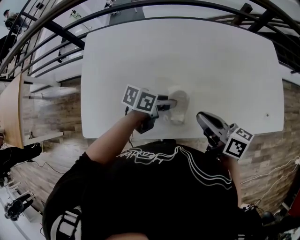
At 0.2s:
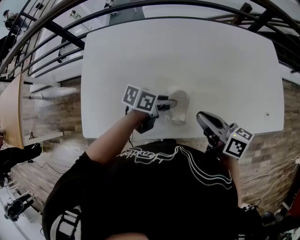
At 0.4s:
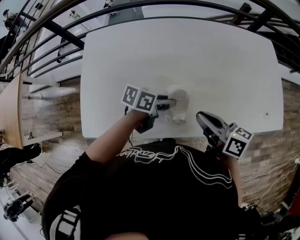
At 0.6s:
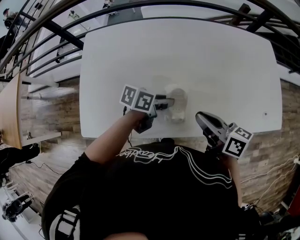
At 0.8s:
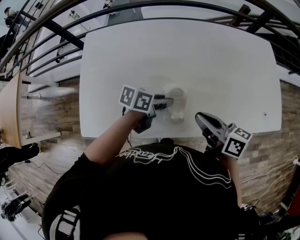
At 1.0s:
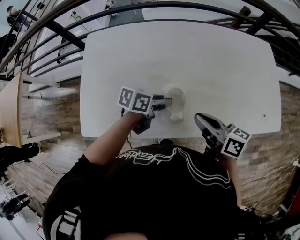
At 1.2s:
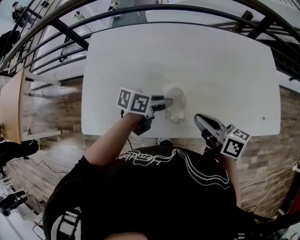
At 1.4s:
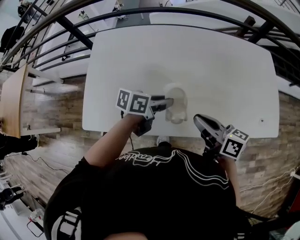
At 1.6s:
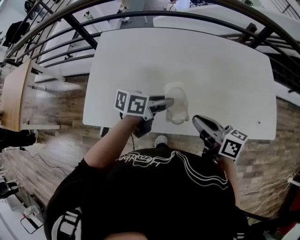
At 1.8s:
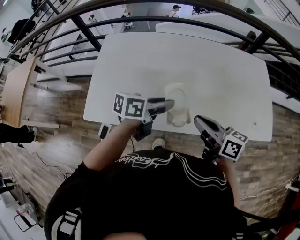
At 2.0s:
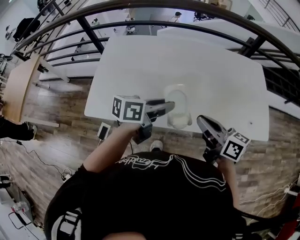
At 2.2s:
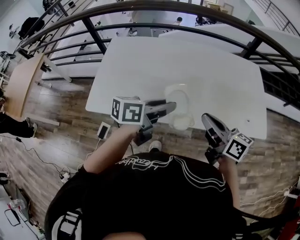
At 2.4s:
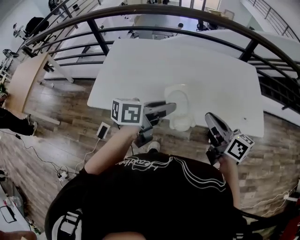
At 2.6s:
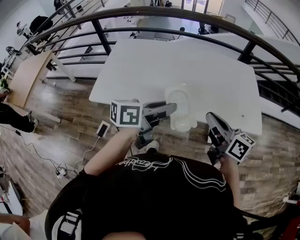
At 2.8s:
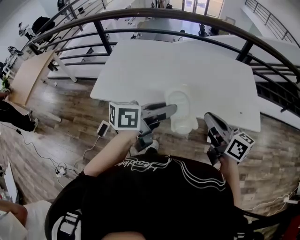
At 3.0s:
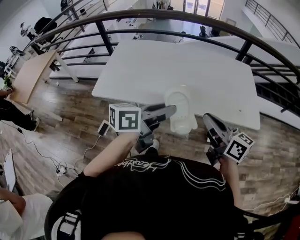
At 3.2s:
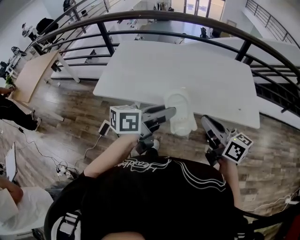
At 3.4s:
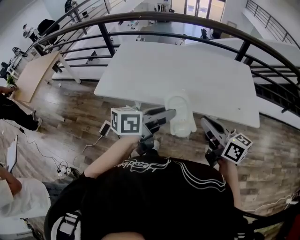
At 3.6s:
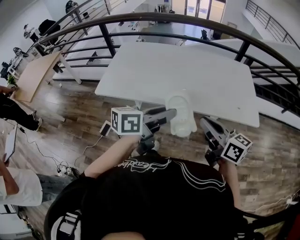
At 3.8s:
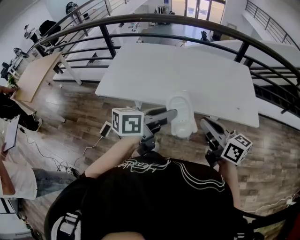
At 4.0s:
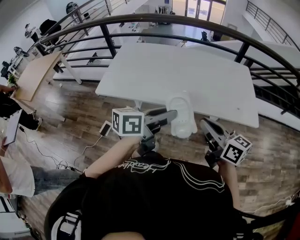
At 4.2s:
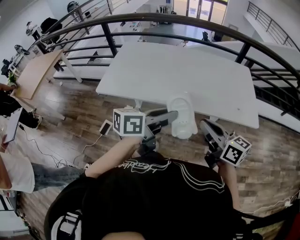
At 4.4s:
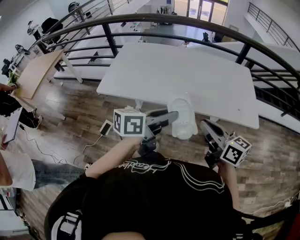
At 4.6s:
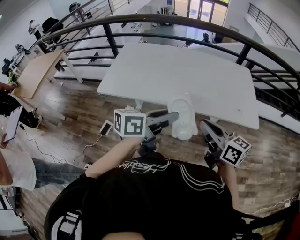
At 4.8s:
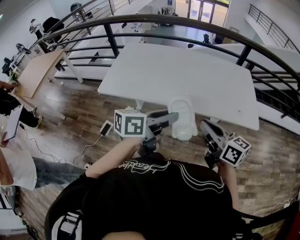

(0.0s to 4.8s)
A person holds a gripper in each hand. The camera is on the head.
0.0s - 1.6s: The left gripper heads upward, covering about 10 cm.
1.6s - 3.2s: The right gripper is displaced backward, to the right and upward by approximately 35 cm. Meanwhile the left gripper heads backward, upward and to the right, covering some 40 cm, and rotates about 20 degrees.
3.2s - 4.8s: The grippers make only small movements.

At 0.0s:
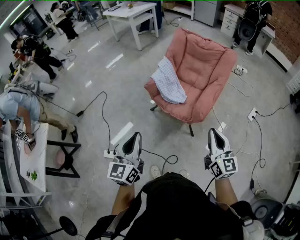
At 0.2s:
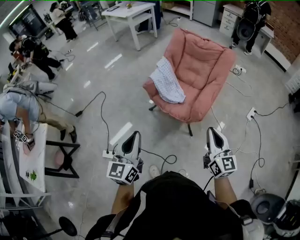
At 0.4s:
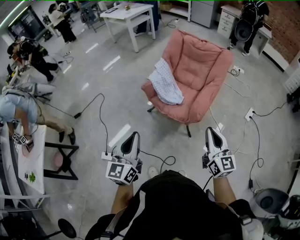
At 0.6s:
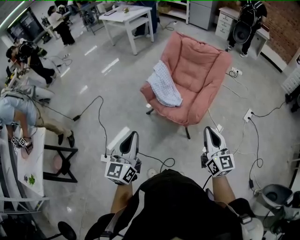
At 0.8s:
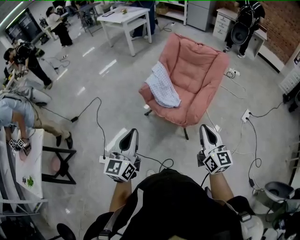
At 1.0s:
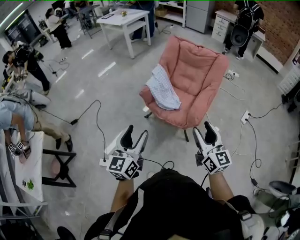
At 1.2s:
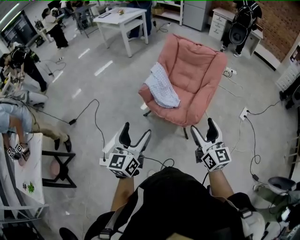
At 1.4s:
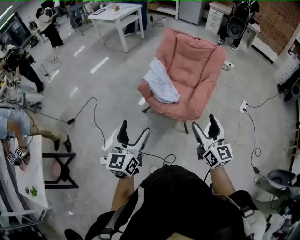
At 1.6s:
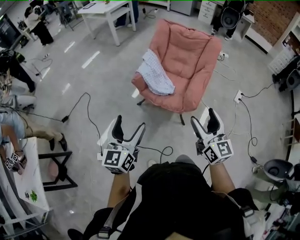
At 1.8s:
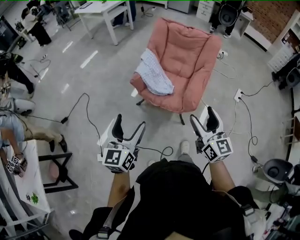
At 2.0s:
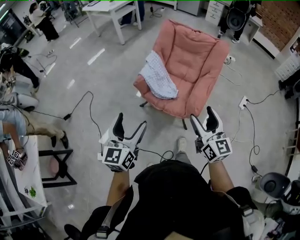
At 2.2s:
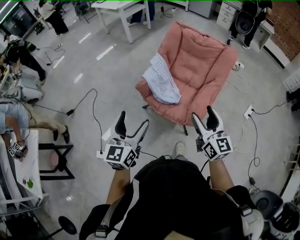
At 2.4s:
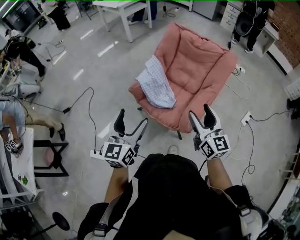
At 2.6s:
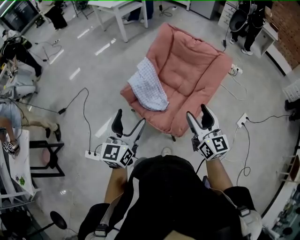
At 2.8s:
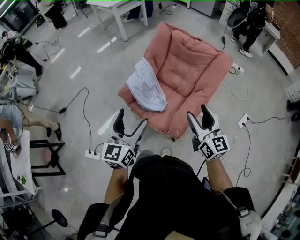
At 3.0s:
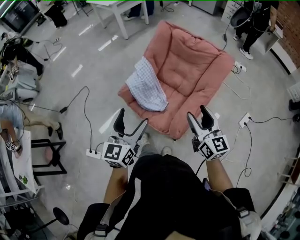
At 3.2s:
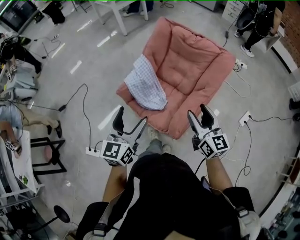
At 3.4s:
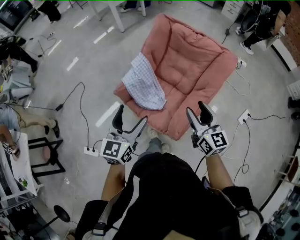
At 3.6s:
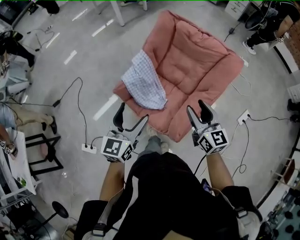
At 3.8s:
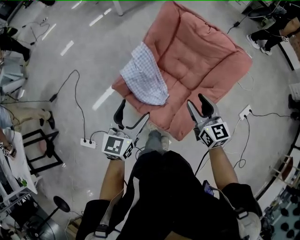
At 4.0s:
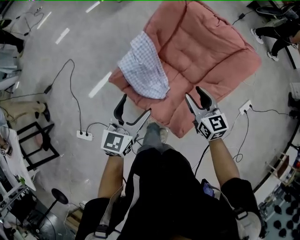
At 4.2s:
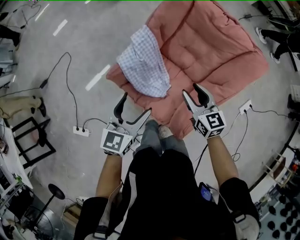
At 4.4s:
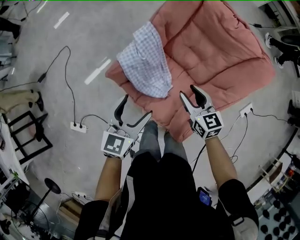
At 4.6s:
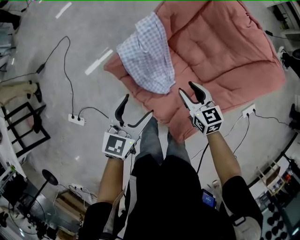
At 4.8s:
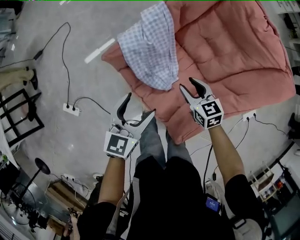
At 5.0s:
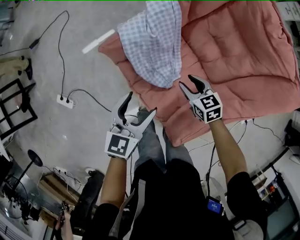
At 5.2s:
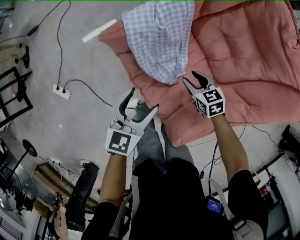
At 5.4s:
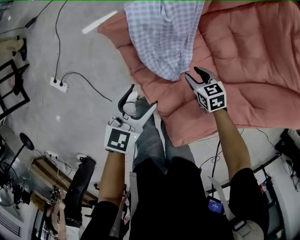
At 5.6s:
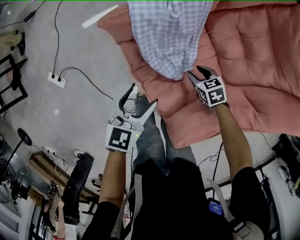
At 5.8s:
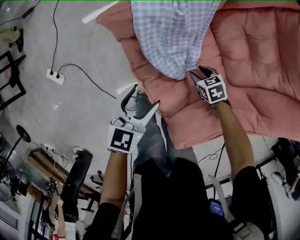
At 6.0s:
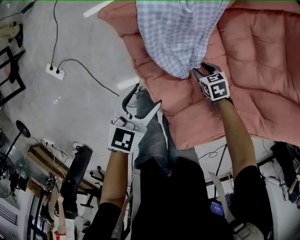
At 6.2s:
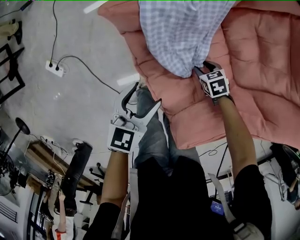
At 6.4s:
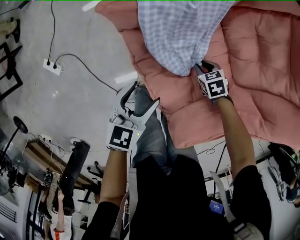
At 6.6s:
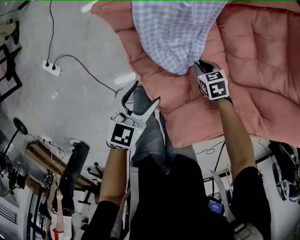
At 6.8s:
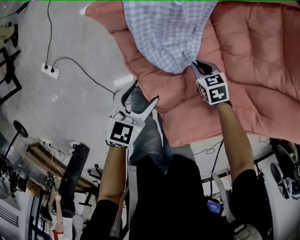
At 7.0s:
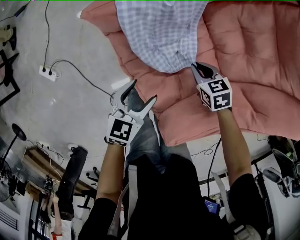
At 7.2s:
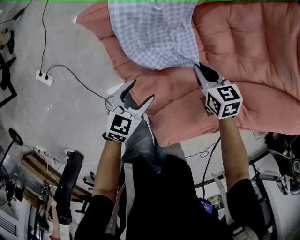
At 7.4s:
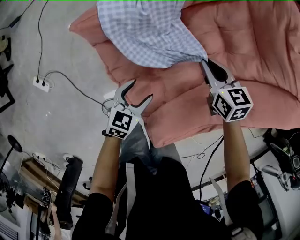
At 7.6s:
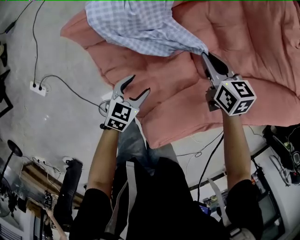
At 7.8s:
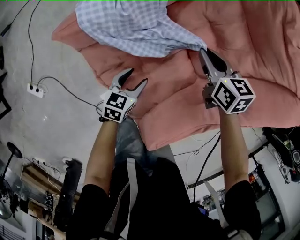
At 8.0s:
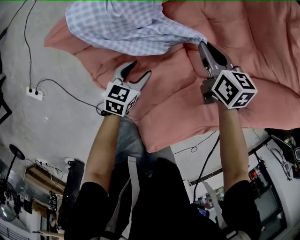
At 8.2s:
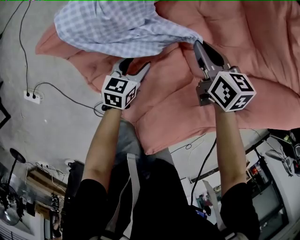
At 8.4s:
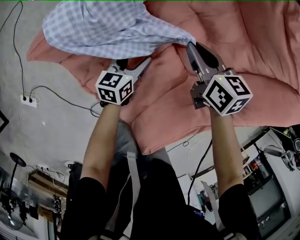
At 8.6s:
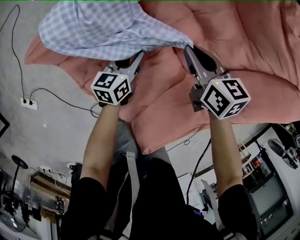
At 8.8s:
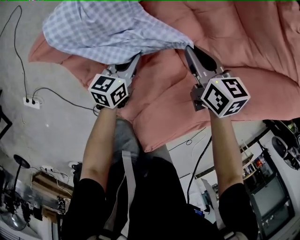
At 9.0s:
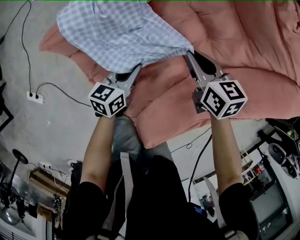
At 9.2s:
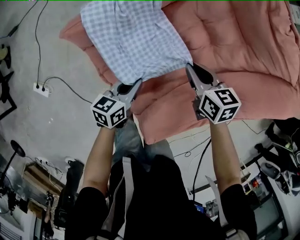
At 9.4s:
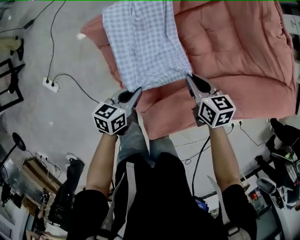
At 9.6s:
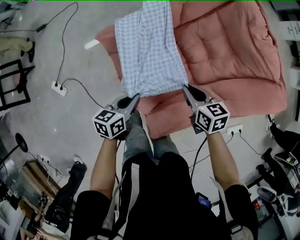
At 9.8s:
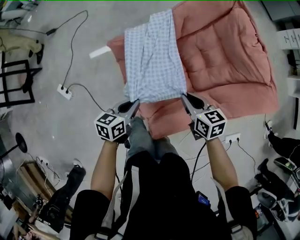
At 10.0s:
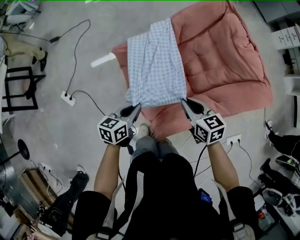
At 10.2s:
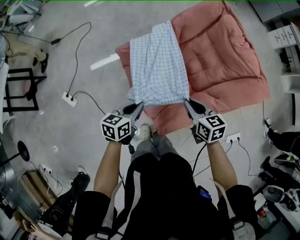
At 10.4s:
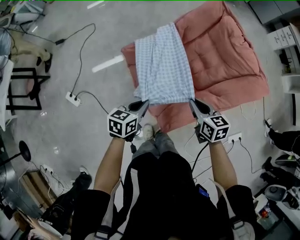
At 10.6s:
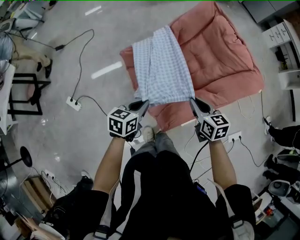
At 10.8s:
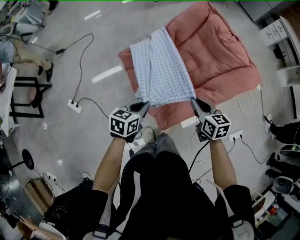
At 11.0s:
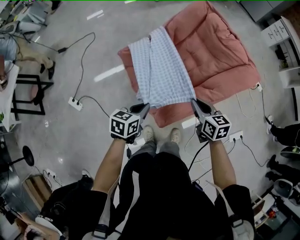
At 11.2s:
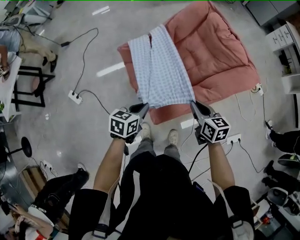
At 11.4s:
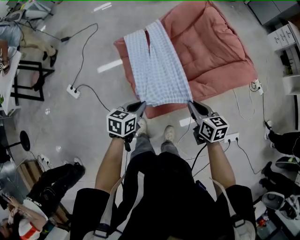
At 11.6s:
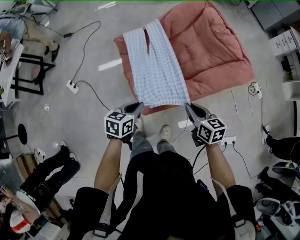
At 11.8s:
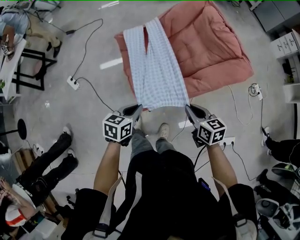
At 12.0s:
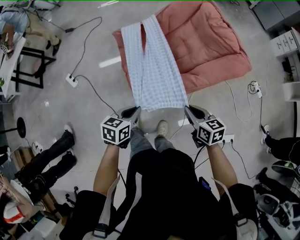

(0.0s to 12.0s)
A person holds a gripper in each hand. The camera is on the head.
0.0s - 1.6s: The right gripper heads to the left, covering roughly 10 cm, and opens, while the left gripper is displaced forward and to the left by some 10 cm, and opens.
1.6s - 3.0s: The grippers both shift forward and to the right by approximately 30 cm.
3.0s - 4.4s: Both grippers move downward and forward, some 30 cm. The right gripper turns by about 30 degrees.
4.4s - 6.0s: The left gripper travels downward by approximately 25 cm, and changes its angle by some 20 degrees; the right gripper goes about 40 cm downward, and points its fingers approximately 40 degrees further downward.
6.0s - 7.6s: The left gripper moves about 15 cm. Meanwhile the right gripper goes approximately 20 cm upward, changes its angle by roughly 30 degrees, and closes up.
7.6s - 9.0s: The left gripper goes about 10 cm forward, swivels roughly 30 degrees, and closes.
9.0s - 10.4s: Both grippers move upward and backward, some 30 cm.
10.4s - 12.0s: The right gripper goes some 25 cm to the right and backward. Meanwhile the left gripper heads backward and to the right, covering about 25 cm.

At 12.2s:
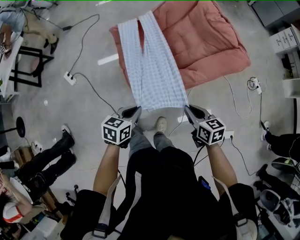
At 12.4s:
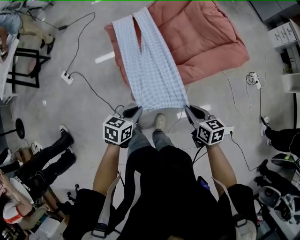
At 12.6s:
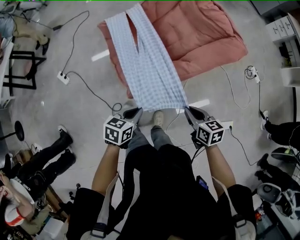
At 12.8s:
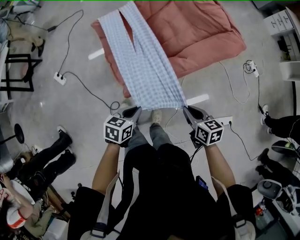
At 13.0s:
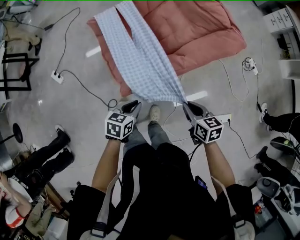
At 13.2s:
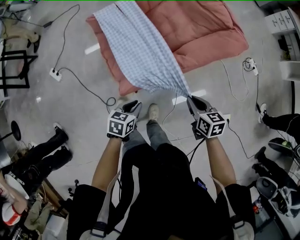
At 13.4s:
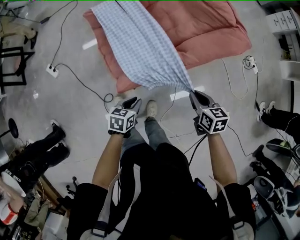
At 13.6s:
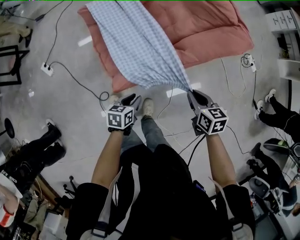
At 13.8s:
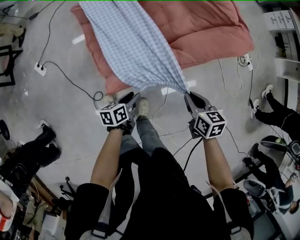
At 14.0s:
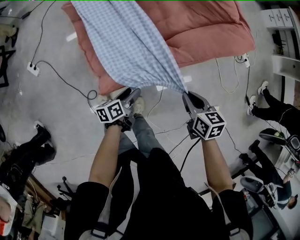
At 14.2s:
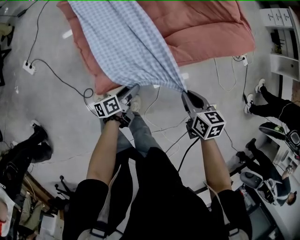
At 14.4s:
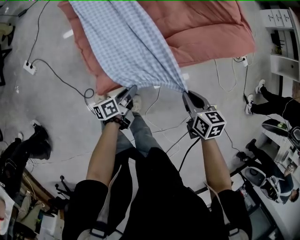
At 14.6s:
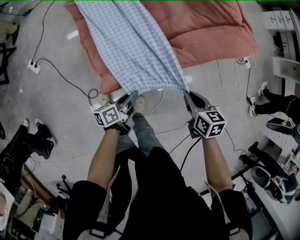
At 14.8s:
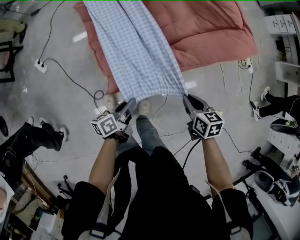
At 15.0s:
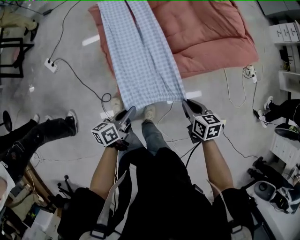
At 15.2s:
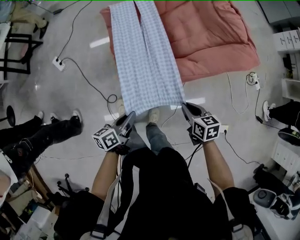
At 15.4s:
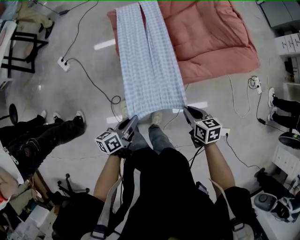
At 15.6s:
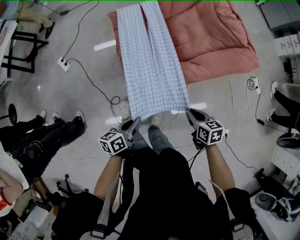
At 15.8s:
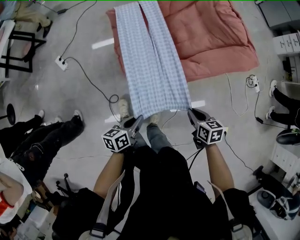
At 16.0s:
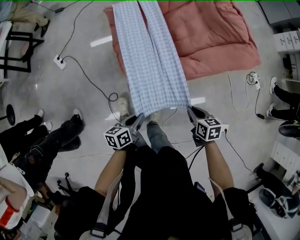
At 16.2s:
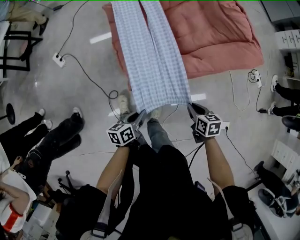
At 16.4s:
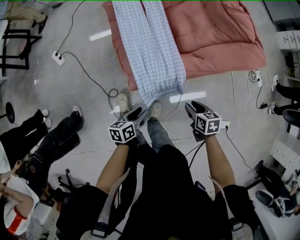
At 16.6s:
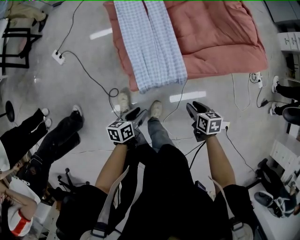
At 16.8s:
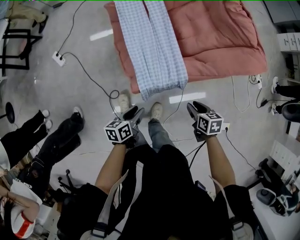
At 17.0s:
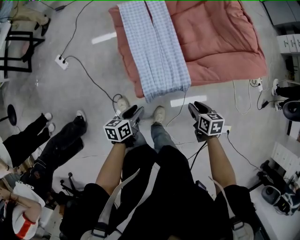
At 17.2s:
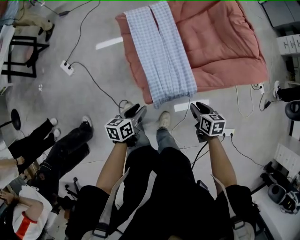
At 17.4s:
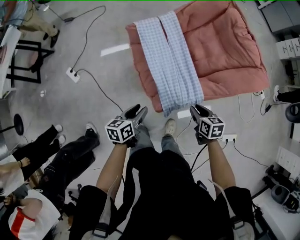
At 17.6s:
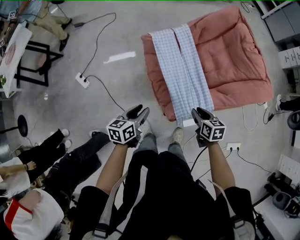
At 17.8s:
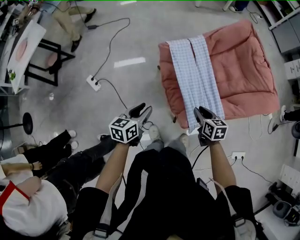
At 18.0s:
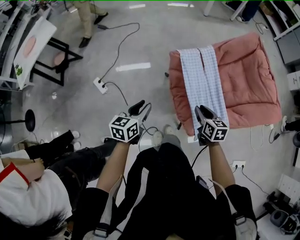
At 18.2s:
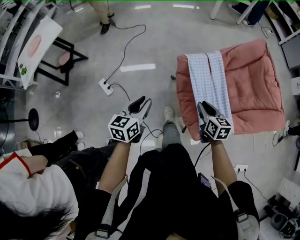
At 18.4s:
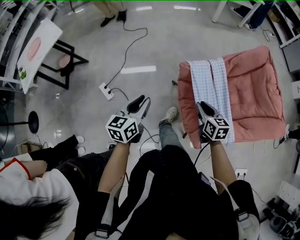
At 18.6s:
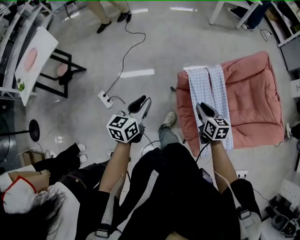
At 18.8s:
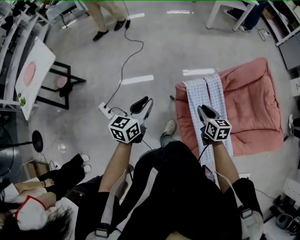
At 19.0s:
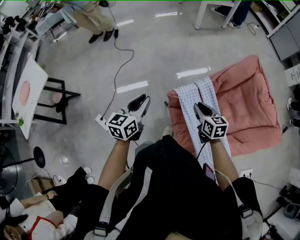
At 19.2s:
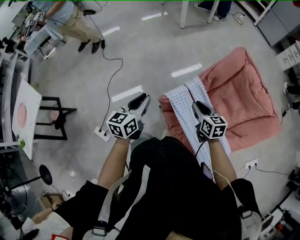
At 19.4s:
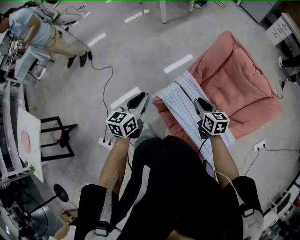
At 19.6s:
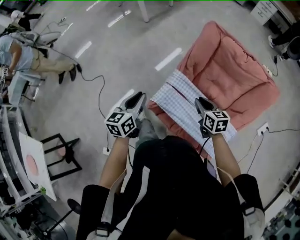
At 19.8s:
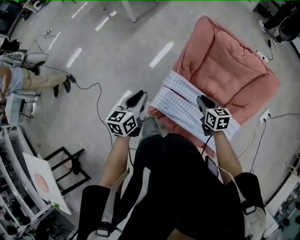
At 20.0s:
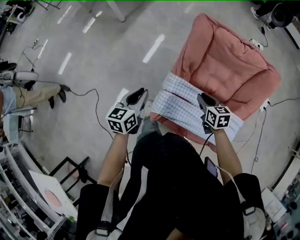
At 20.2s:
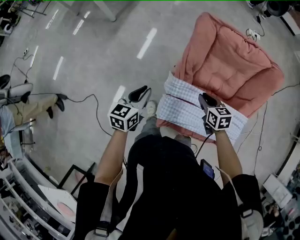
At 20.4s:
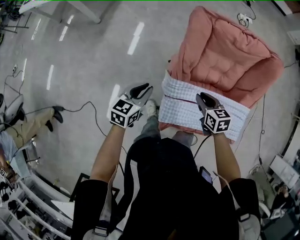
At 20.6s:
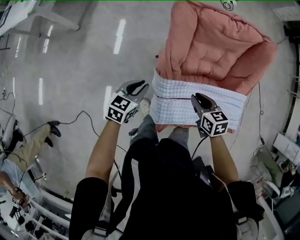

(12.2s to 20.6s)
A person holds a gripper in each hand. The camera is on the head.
12.2s - 13.6s: The right gripper travels to the right and downward by roughly 15 cm; the left gripper shifts some 20 cm downward and to the right.
13.6s - 15.0s: The left gripper is displaced upward by roughly 5 cm, swivels approximately 40 degrees, and opens and closes again.
15.0s - 16.4s: Both grippers travel together downward, approximately 5 cm.
16.4s - 17.8s: The right gripper shifts approximately 35 cm to the left and forward; the left gripper is displaced to the left, forward and upward by some 40 cm, and rotates some 20 degrees.
17.8s - 19.2s: The two grippers go approximately 35 cm forward.
19.2s - 20.6s: The left gripper moves roughly 50 cm, and rotates about 80 degrees. The right gripper changes place by approximately 20 cm, and changes its angle by some 50 degrees.
